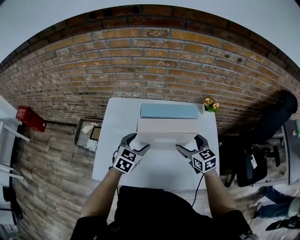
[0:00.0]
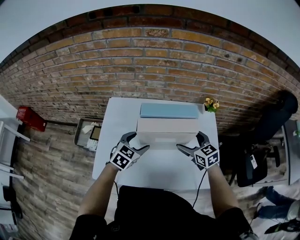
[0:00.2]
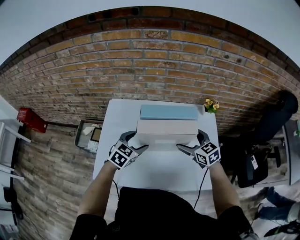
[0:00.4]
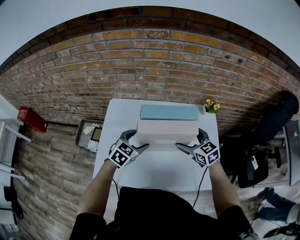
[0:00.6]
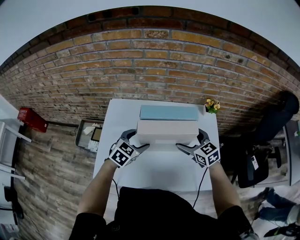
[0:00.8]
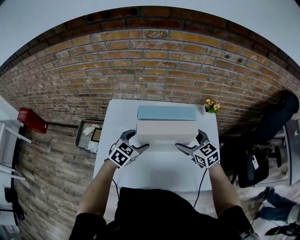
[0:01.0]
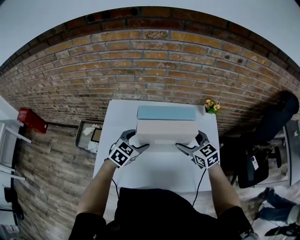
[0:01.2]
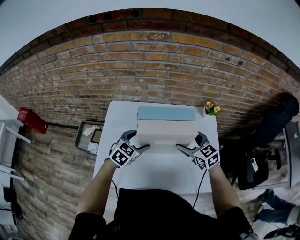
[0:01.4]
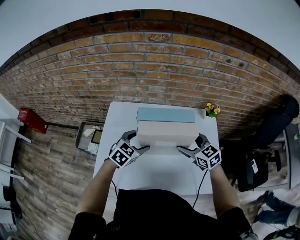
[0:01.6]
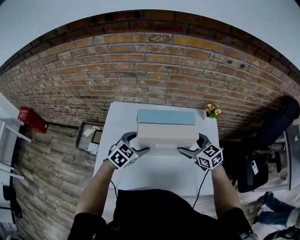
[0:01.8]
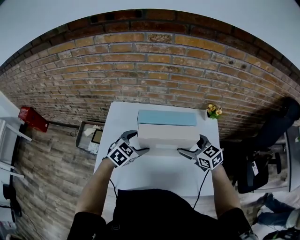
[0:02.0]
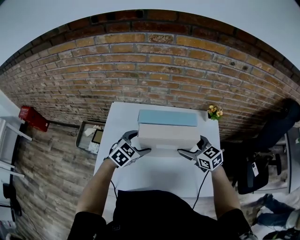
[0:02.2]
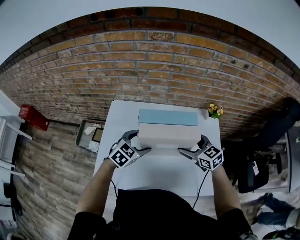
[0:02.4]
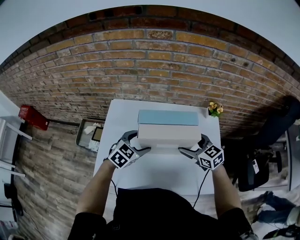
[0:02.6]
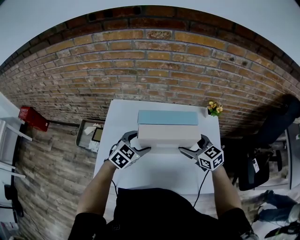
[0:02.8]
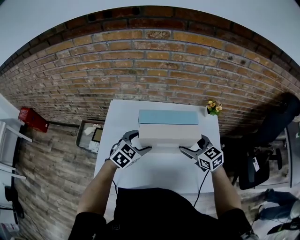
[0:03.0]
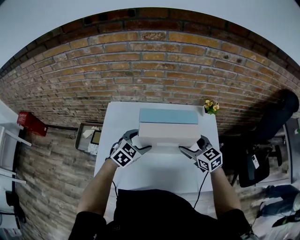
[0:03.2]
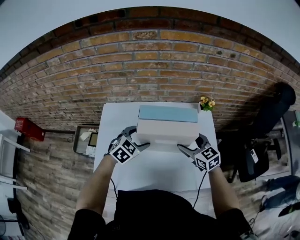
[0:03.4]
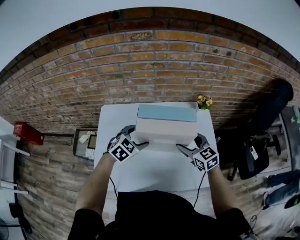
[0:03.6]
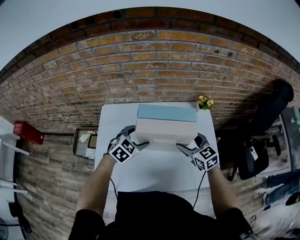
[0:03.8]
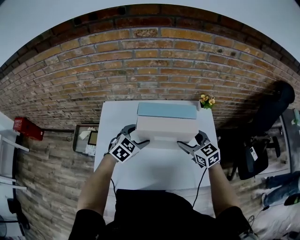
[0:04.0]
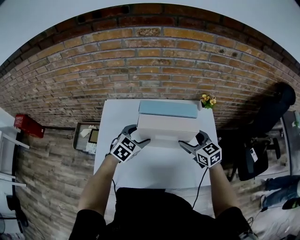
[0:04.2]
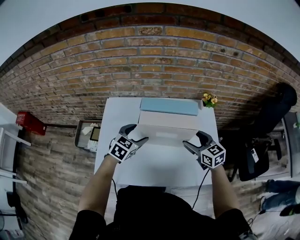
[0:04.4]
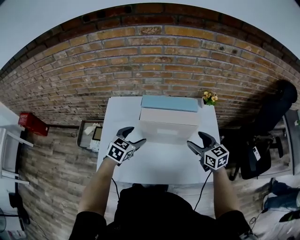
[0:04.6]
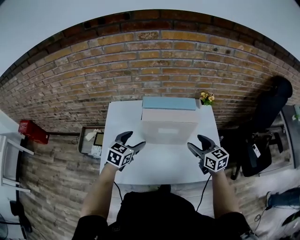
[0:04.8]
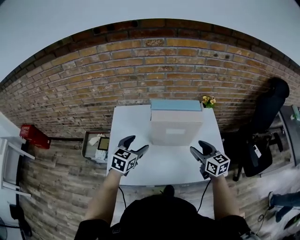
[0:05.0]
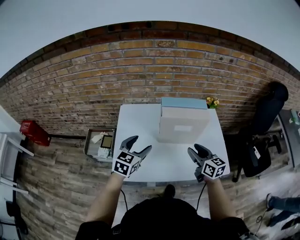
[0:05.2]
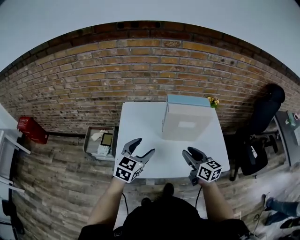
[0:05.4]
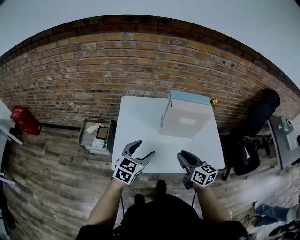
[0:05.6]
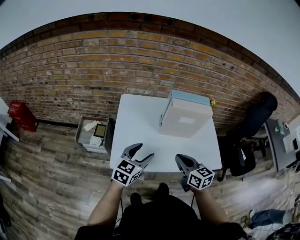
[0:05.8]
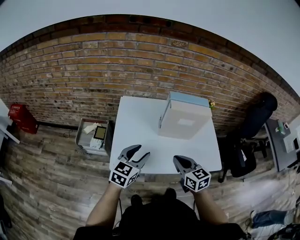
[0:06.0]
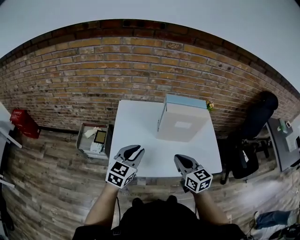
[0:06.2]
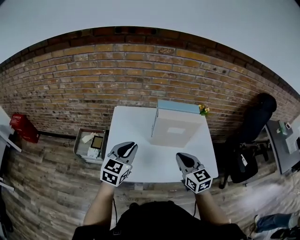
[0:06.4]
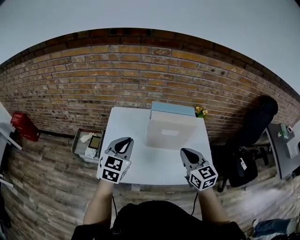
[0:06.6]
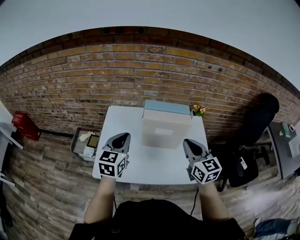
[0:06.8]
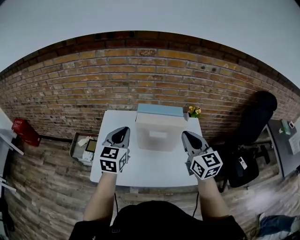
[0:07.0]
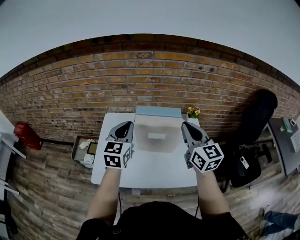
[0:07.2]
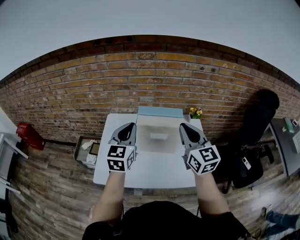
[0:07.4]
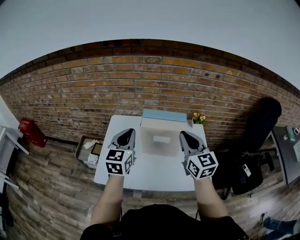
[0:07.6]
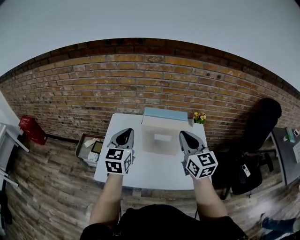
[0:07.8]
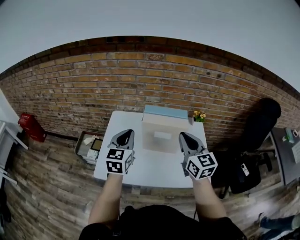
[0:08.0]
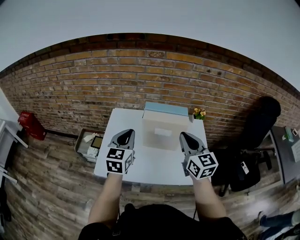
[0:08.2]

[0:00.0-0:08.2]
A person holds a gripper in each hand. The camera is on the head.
0:00.0 to 0:03.2: The grippers stay close to where they were, moving slightly.
0:03.2 to 0:05.0: The right gripper is displaced backward by some 10 cm, and changes its angle by some 20 degrees. Meanwhile the left gripper travels to the left and backward by about 10 cm, and changes its angle by approximately 20 degrees.
0:05.0 to 0:06.6: The left gripper is displaced upward and backward by roughly 10 cm, and closes up. Meanwhile the right gripper travels upward, to the left and backward by roughly 15 cm, and closes its fingers.
0:06.6 to 0:08.2: The right gripper goes approximately 5 cm upward.

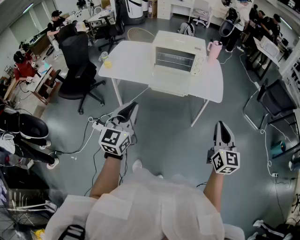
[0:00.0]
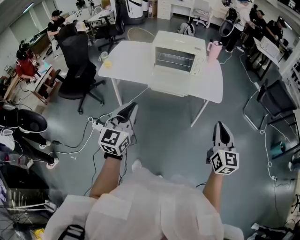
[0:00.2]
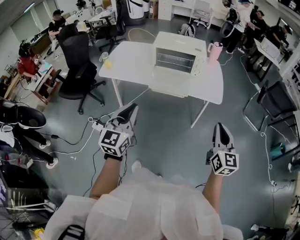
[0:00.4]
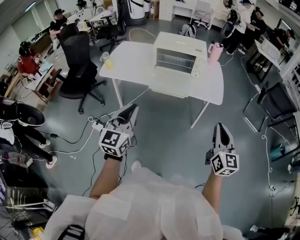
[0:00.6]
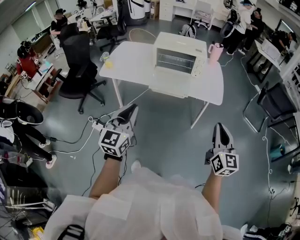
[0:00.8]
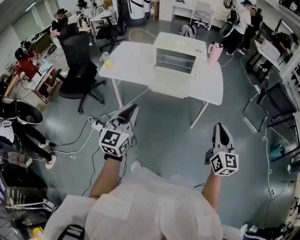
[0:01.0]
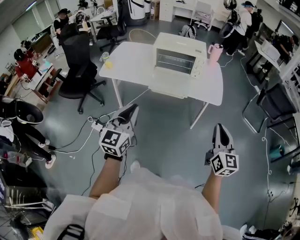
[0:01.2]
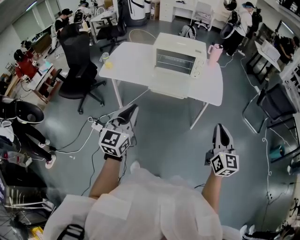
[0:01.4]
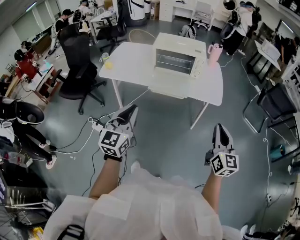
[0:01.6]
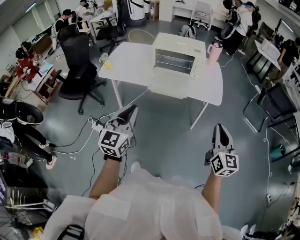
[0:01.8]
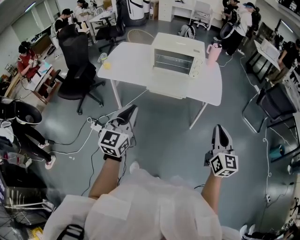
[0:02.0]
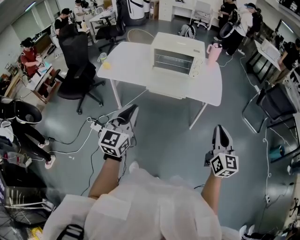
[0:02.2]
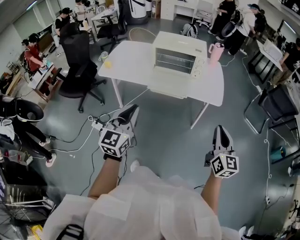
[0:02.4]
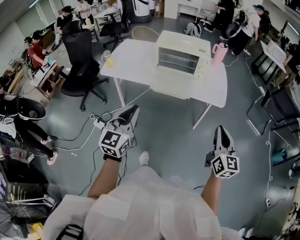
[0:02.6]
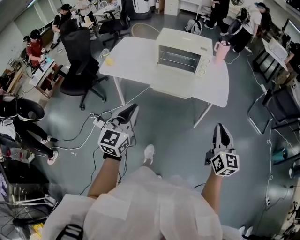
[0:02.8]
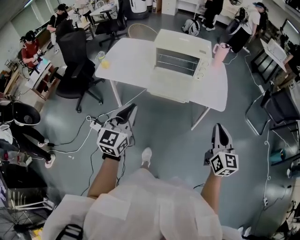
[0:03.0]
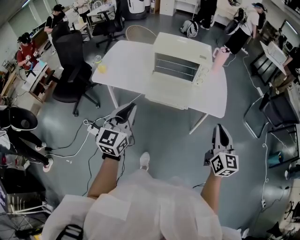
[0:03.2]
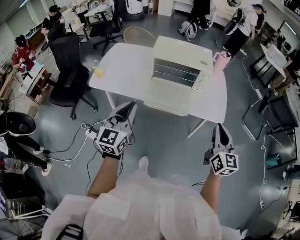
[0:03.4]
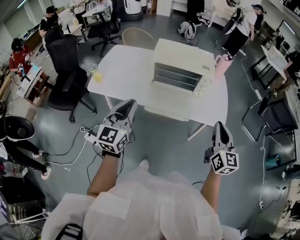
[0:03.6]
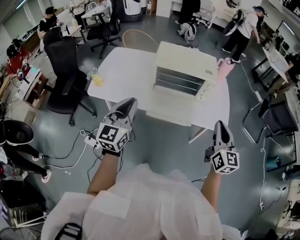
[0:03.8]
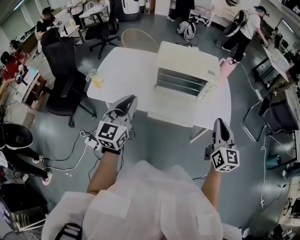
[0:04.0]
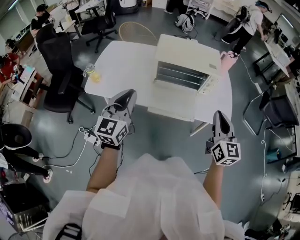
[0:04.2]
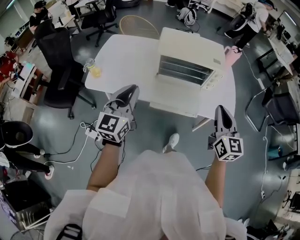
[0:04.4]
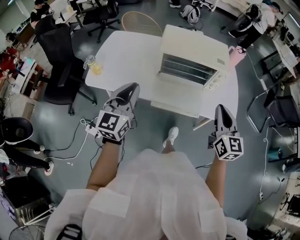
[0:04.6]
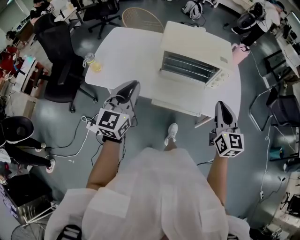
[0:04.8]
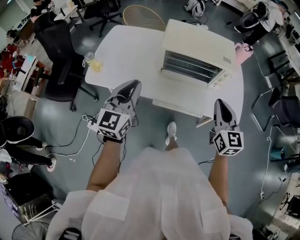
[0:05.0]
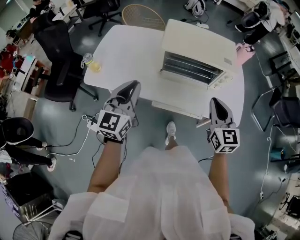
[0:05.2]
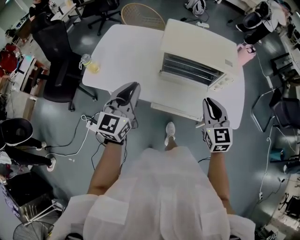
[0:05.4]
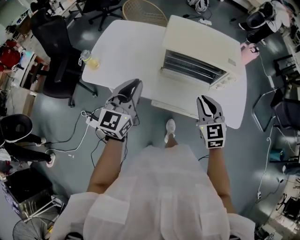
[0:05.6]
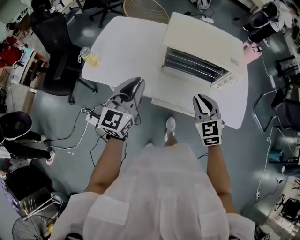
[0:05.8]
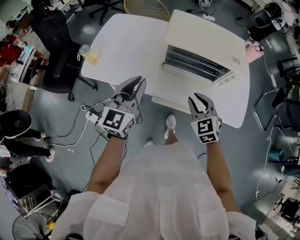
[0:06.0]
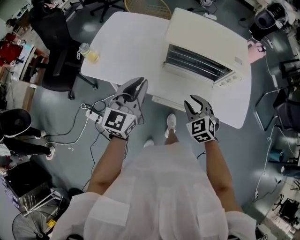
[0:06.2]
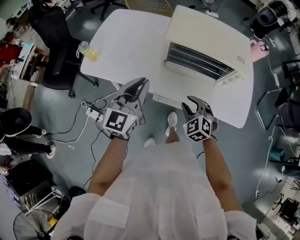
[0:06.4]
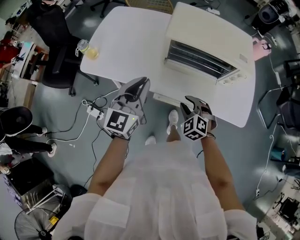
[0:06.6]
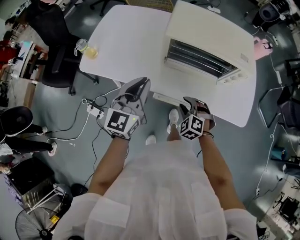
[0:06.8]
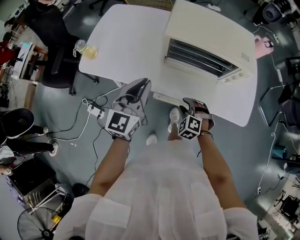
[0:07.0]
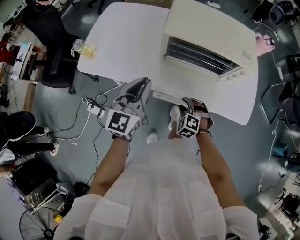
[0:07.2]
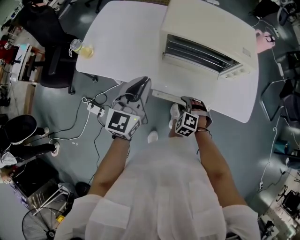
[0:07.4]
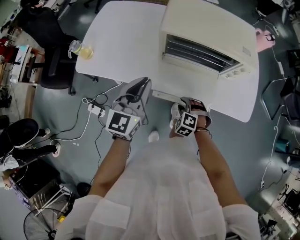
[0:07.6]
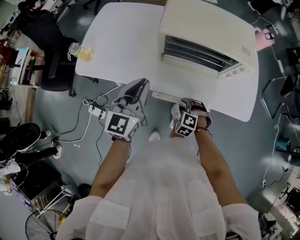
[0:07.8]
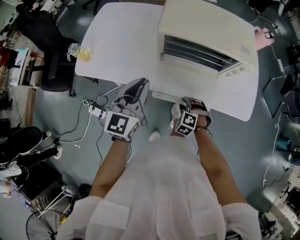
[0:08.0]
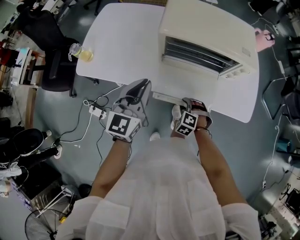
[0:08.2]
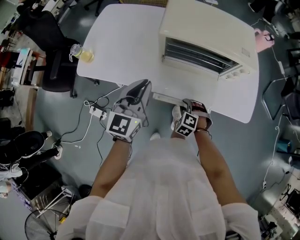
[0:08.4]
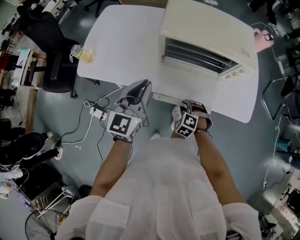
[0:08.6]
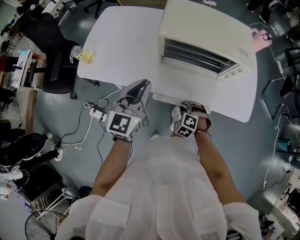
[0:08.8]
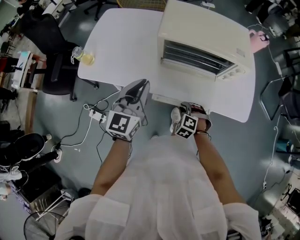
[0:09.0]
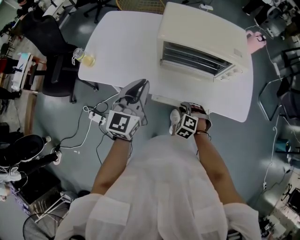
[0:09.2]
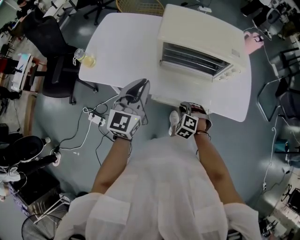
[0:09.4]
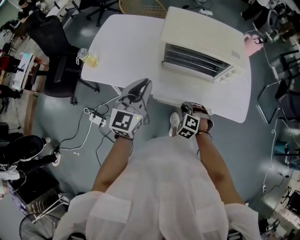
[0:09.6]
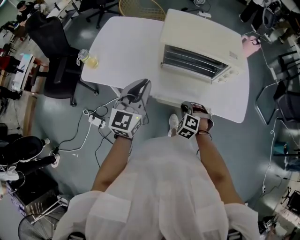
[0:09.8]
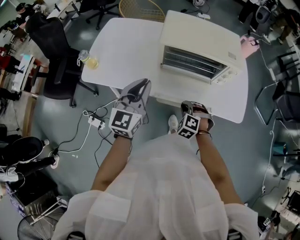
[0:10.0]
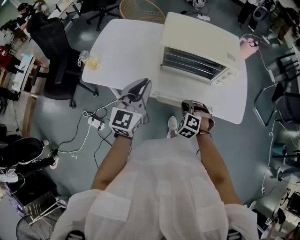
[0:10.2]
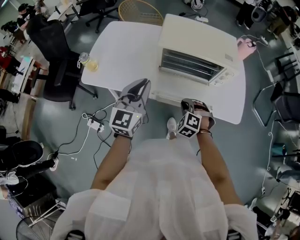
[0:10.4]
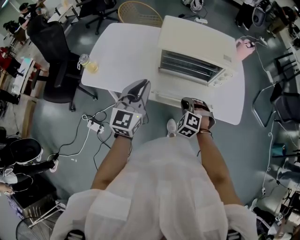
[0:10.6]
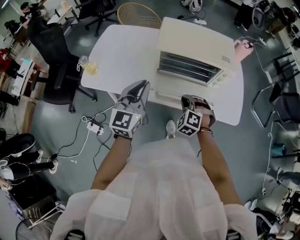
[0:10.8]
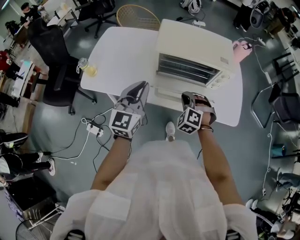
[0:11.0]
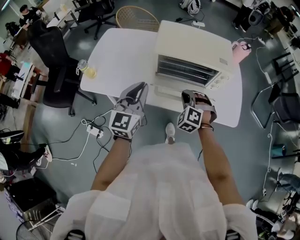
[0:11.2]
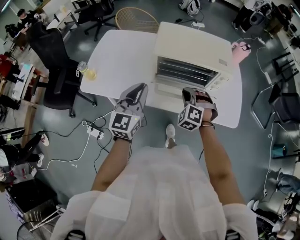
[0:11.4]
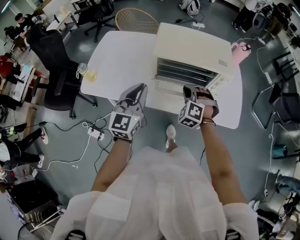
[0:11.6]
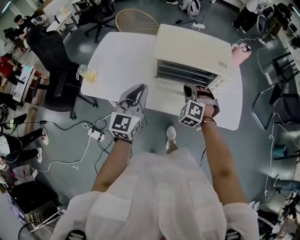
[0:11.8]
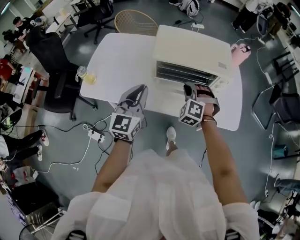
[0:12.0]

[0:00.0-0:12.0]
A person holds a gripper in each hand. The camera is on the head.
0:00.0 to 0:01.6: The two grippers keep their place.
0:01.6 to 0:03.0: Both grippers move forward, some 10 cm.
0:03.0 to 0:04.4: The left gripper moves forward, approximately 25 cm. Meanwhile the right gripper shifts roughly 25 cm forward and to the left.
0:04.4 to 0:06.0: The left gripper moves forward and downward, roughly 10 cm. The right gripper goes approximately 25 cm downward, forward and to the left, turns by about 40 degrees, and opens its fingers.
0:06.0 to 0:07.6: The left gripper travels downward by roughly 5 cm; the right gripper is displaced downward by roughly 20 cm, and tips its fingers downward by some 30 degrees.
0:07.6 to 0:09.0: The right gripper closes its fingers.
0:09.0 to 0:10.4: The right gripper is displaced upward by roughly 10 cm.
0:10.4 to 0:12.0: The right gripper travels forward and upward by roughly 15 cm.

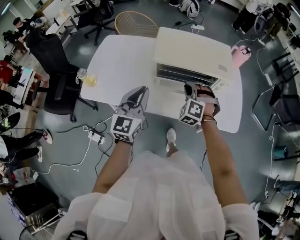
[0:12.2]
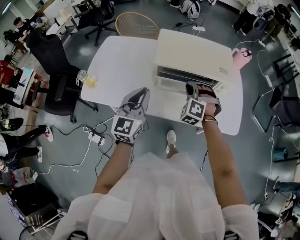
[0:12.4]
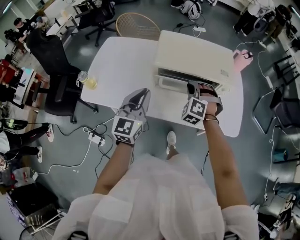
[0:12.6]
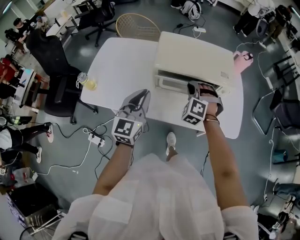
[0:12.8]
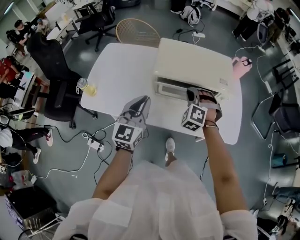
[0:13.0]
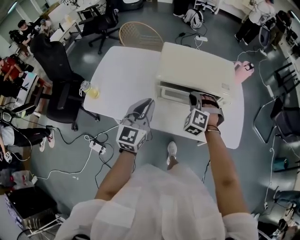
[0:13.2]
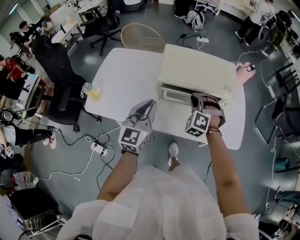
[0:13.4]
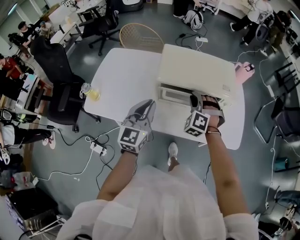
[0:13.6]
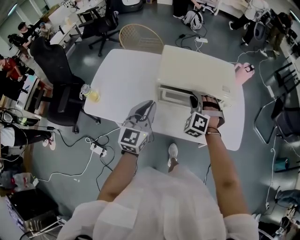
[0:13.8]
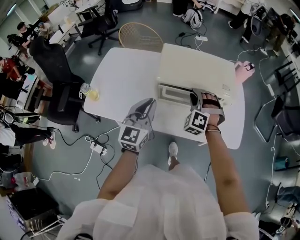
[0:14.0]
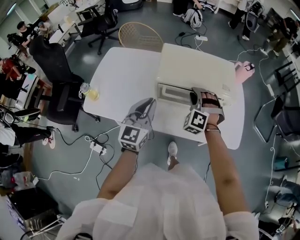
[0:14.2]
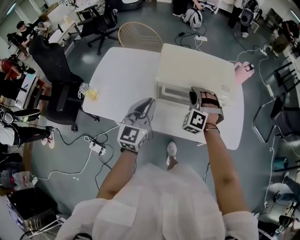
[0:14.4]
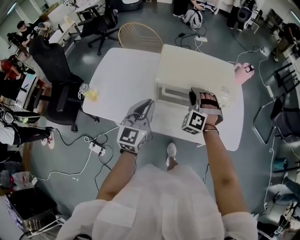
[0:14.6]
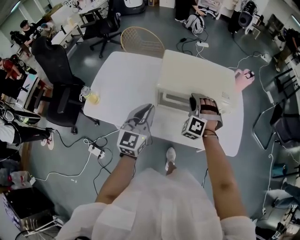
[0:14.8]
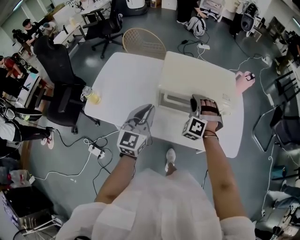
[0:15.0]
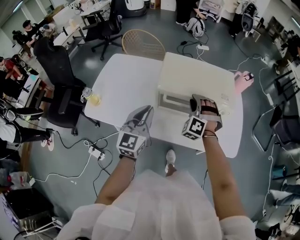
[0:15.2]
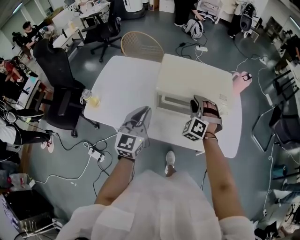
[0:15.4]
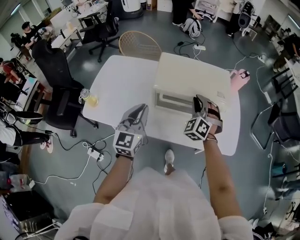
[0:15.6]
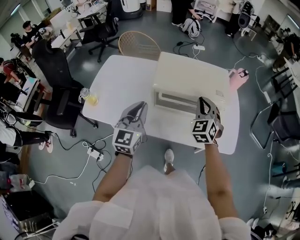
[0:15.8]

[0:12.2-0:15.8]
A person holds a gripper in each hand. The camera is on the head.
0:12.2 to 0:14.0: The right gripper goes approximately 5 cm forward.
0:14.0 to 0:15.8: The right gripper moves upward and to the right, about 10 cm, rotates roughly 40 degrees, and closes up.
